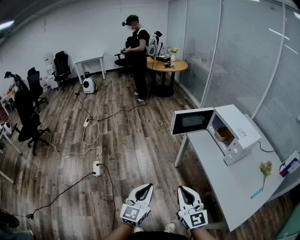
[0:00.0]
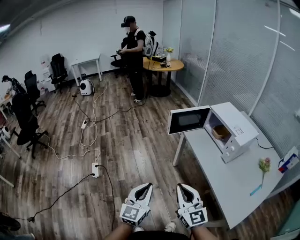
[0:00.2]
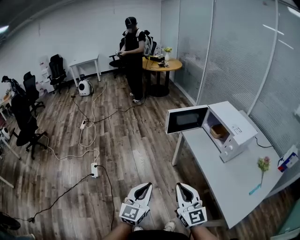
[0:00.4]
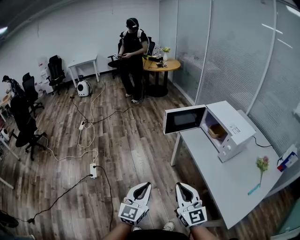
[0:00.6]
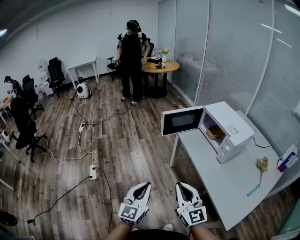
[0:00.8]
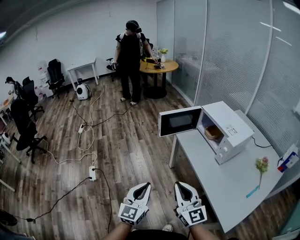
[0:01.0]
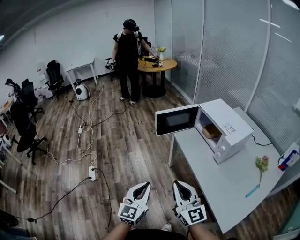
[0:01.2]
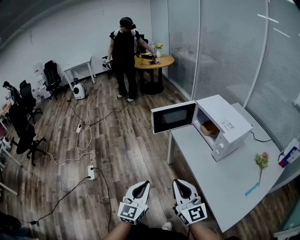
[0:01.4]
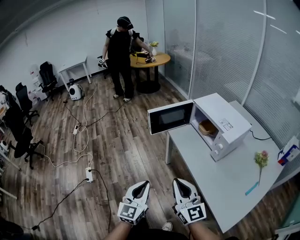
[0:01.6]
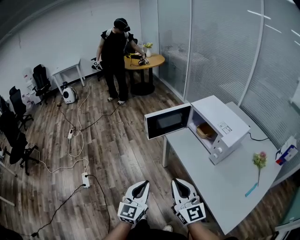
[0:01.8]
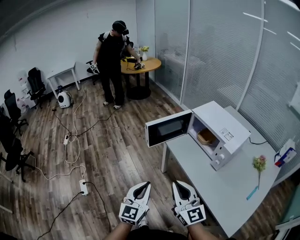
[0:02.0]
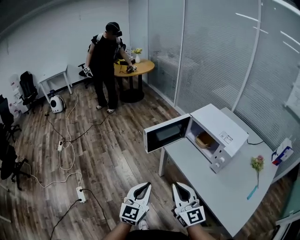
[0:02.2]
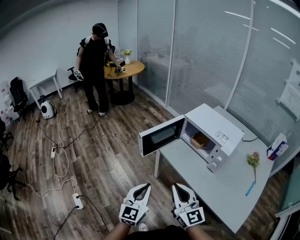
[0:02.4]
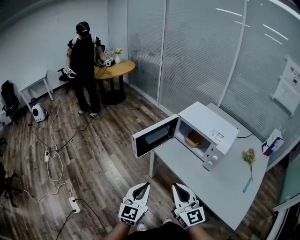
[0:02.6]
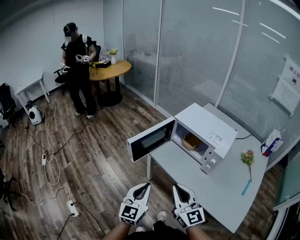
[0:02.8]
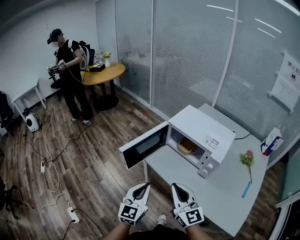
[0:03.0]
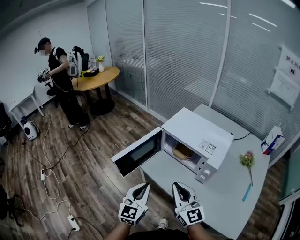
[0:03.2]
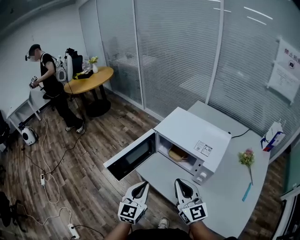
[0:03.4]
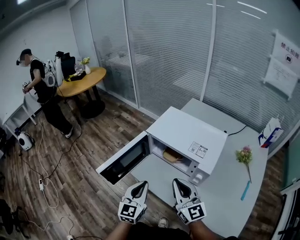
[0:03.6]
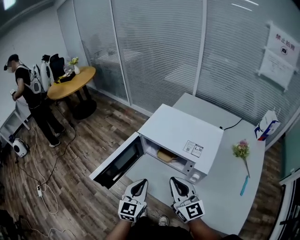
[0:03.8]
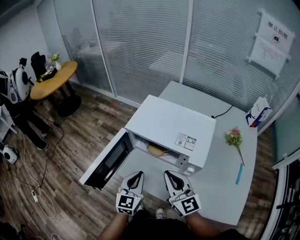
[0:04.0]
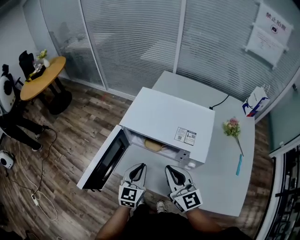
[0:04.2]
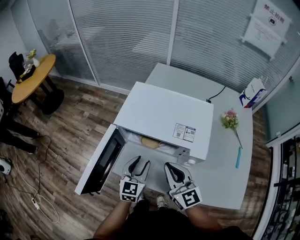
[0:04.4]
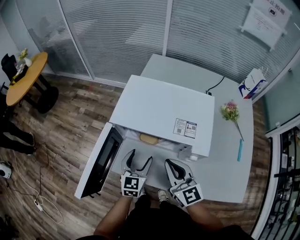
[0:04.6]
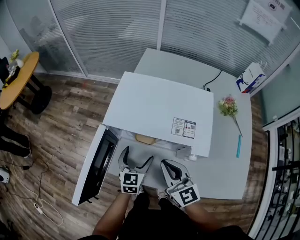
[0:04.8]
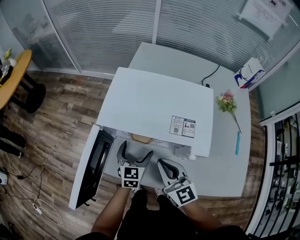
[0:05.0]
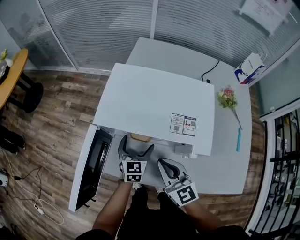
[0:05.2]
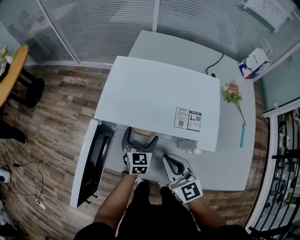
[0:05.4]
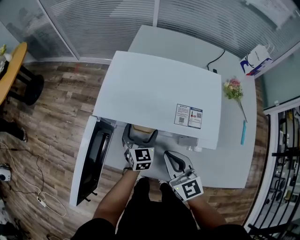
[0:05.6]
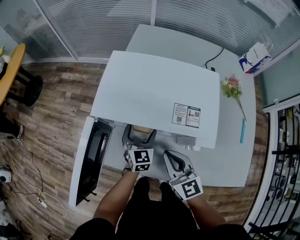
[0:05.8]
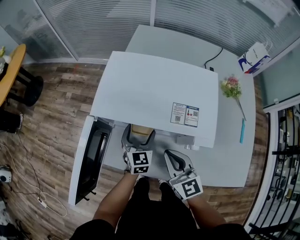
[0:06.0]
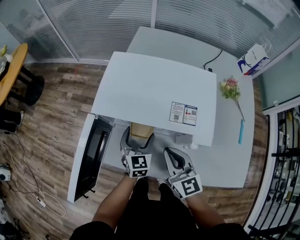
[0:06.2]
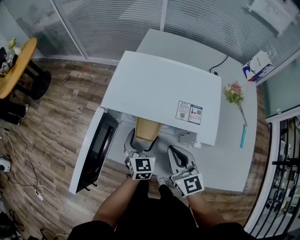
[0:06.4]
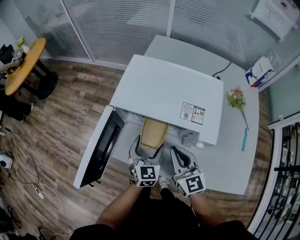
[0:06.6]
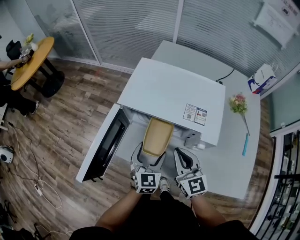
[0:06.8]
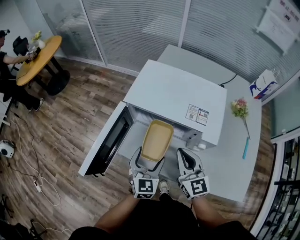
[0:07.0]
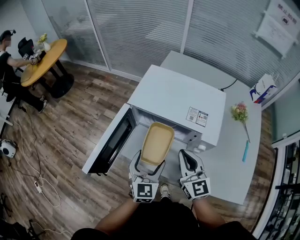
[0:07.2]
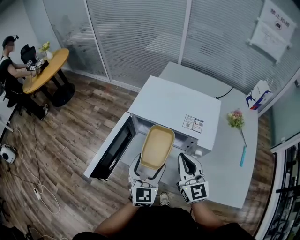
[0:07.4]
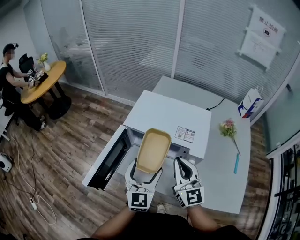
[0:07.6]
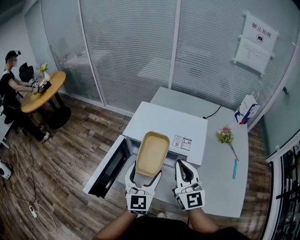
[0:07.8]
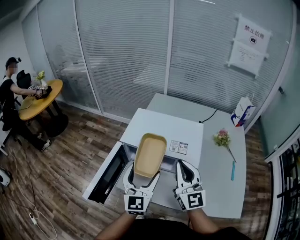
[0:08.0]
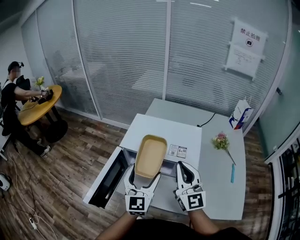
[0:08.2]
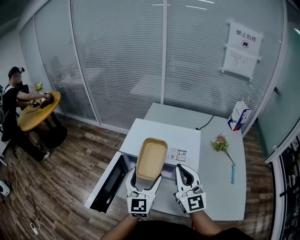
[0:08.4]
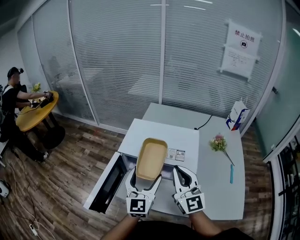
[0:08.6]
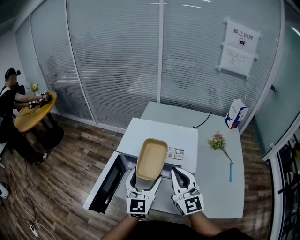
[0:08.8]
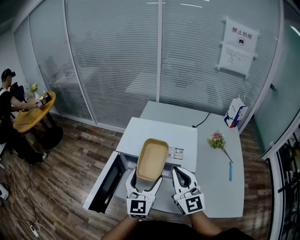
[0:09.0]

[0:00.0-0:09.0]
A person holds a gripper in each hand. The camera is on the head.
0.0 to 1.6 s: The grippers both shift to the right and forward by some 15 cm.
1.6 to 3.0 s: Both grippers travel together forward, about 20 cm. The right gripper changes its angle by approximately 20 degrees; the left gripper rotates some 20 degrees.
3.0 to 4.4 s: The two grippers go some 25 cm forward and to the right. The left gripper changes its angle by about 20 degrees. Meanwhile the right gripper rotates approximately 20 degrees.
4.4 to 6.0 s: The left gripper goes some 15 cm forward and downward, and opens. The right gripper shifts some 10 cm downward.
6.0 to 7.6 s: The right gripper shifts about 15 cm upward, and turns by some 20 degrees. Meanwhile the left gripper is displaced upward and backward by approximately 25 cm, and changes its angle by roughly 20 degrees.
7.6 to 9.0 s: The left gripper moves roughly 5 cm. Meanwhile the right gripper goes about 5 cm upward.

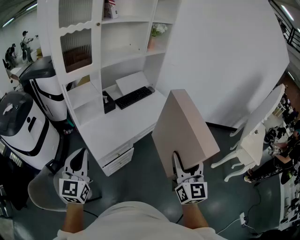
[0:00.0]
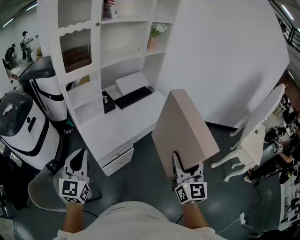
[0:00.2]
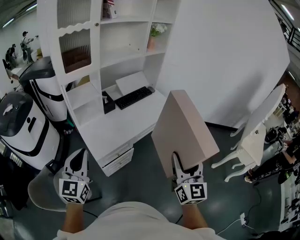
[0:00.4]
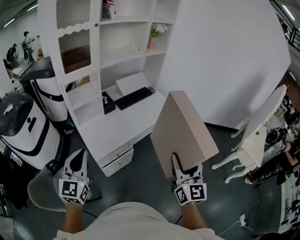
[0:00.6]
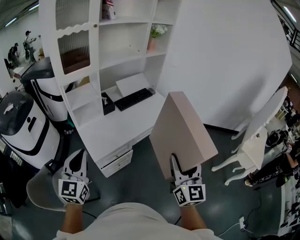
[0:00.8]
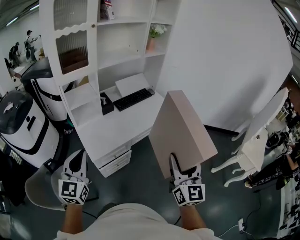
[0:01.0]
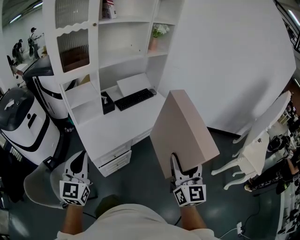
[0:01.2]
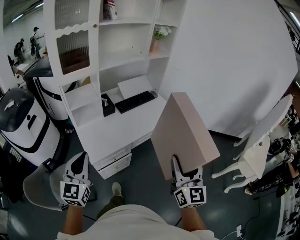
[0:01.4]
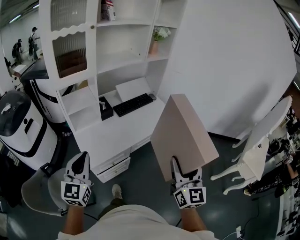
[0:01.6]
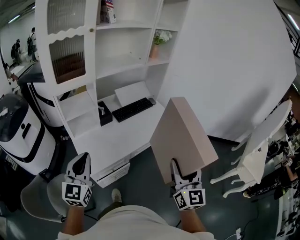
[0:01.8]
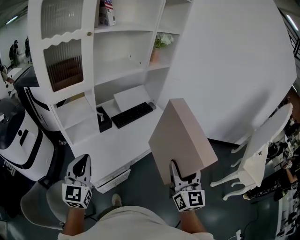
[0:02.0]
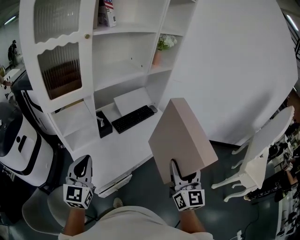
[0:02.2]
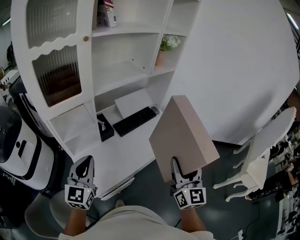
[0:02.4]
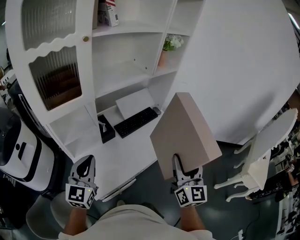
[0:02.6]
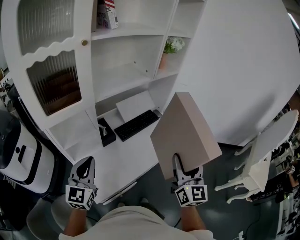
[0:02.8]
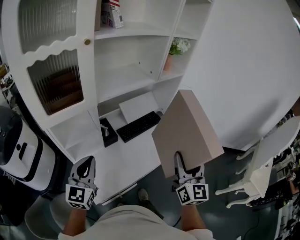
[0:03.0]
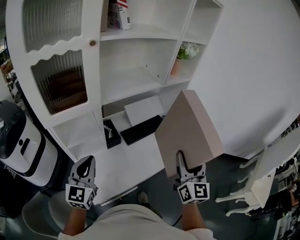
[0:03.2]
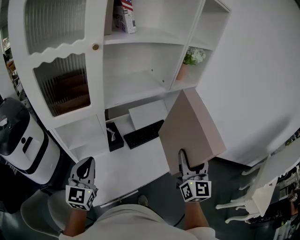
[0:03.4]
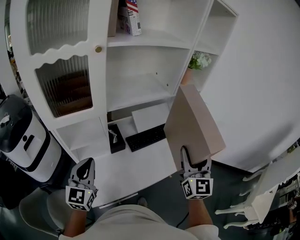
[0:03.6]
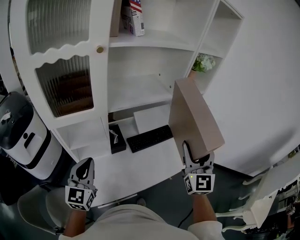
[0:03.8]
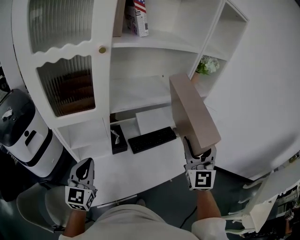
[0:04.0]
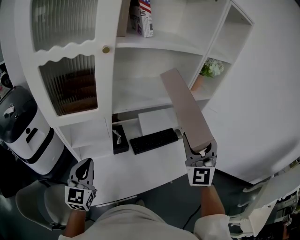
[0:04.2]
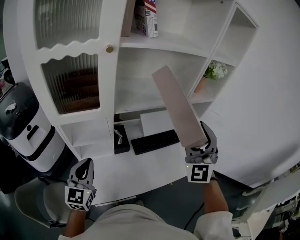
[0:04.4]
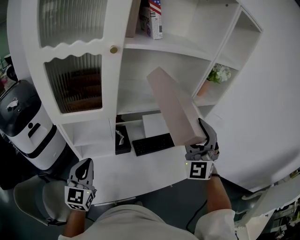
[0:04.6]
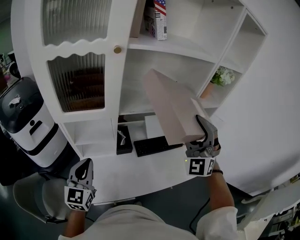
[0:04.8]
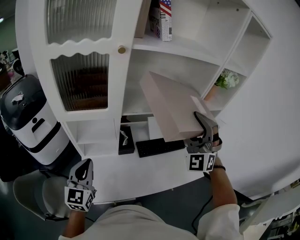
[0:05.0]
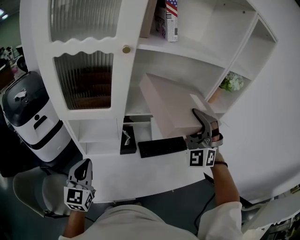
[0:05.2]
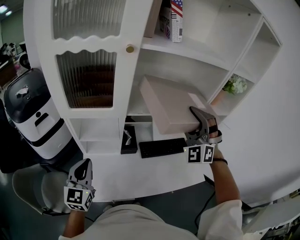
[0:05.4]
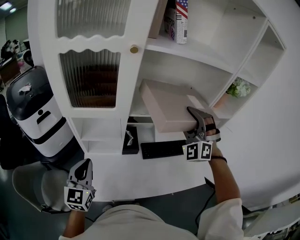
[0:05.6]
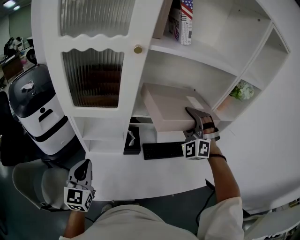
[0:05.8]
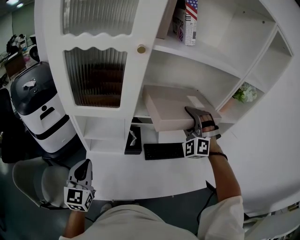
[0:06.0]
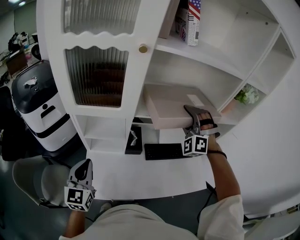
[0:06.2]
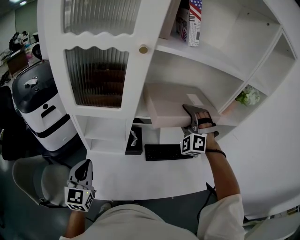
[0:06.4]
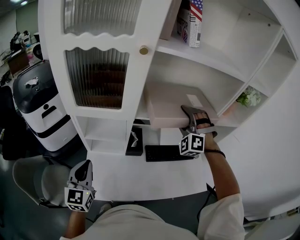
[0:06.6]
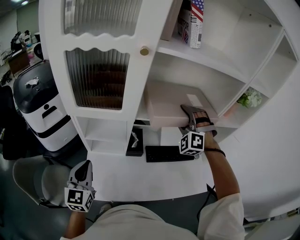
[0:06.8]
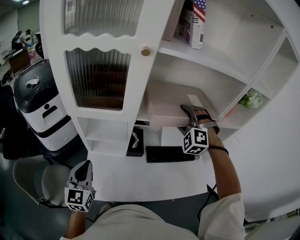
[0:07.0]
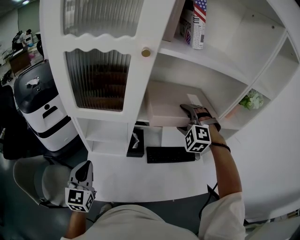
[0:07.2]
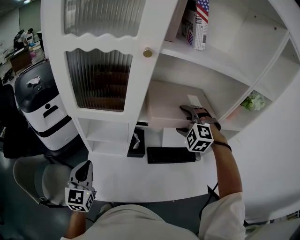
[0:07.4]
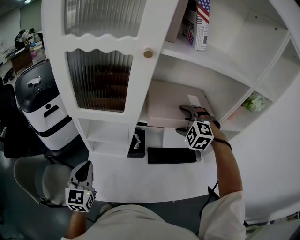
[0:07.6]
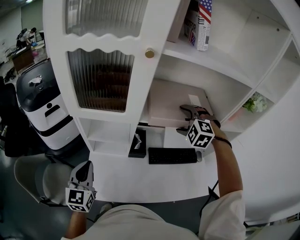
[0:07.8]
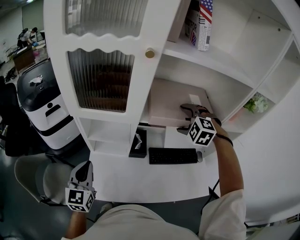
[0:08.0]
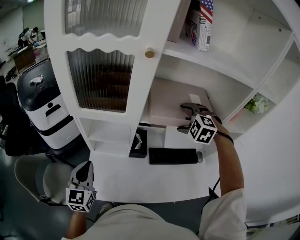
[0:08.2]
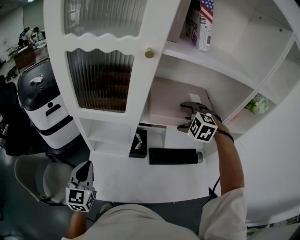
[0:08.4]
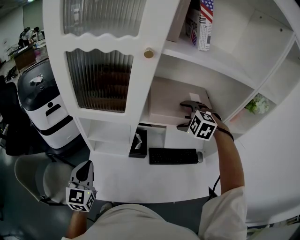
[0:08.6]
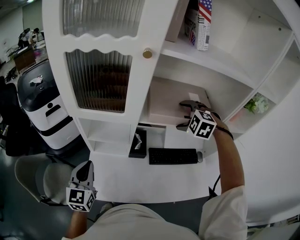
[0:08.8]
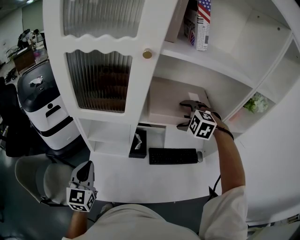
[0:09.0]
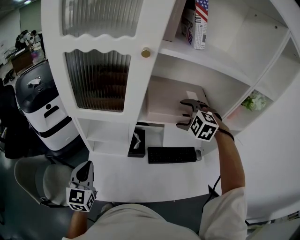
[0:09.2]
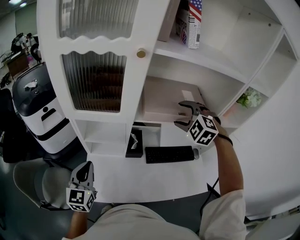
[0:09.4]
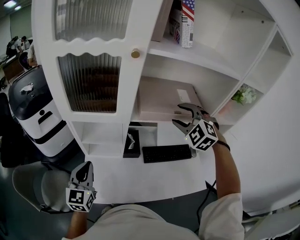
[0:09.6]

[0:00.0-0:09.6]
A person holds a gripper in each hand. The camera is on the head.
0.0 to 1.6 s: The left gripper travels forward and to the right by roughly 10 cm. Meanwhile the right gripper moves forward, approximately 10 cm.
1.6 to 3.2 s: Both grippers move forward, about 30 cm.
3.2 to 4.8 s: The right gripper goes roughly 20 cm forward, and rotates around the line of its fingers by about 60 degrees, counterclockwise from behind.
4.8 to 6.4 s: The right gripper moves forward and downward, some 20 cm, and turns by approximately 30 degrees.
6.4 to 8.0 s: The right gripper tips its fingers downward by approximately 30 degrees.
8.0 to 9.6 s: The right gripper heads upward, covering roughly 5 cm, and closes up.

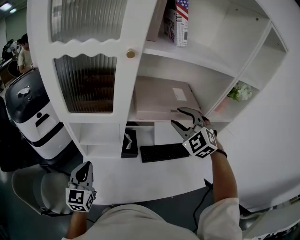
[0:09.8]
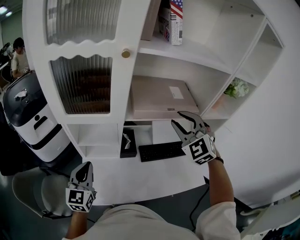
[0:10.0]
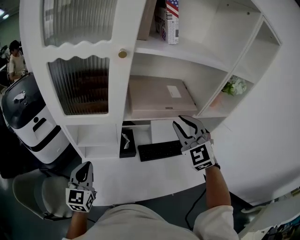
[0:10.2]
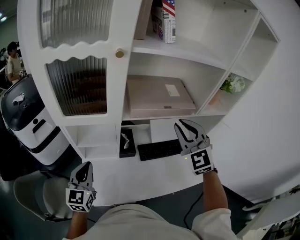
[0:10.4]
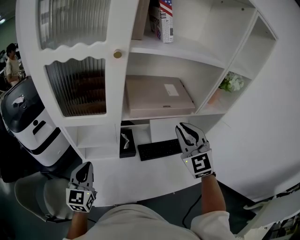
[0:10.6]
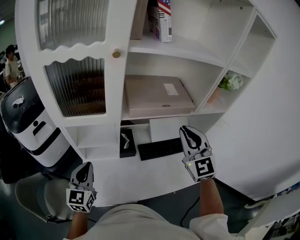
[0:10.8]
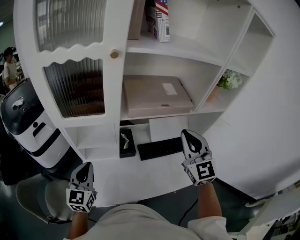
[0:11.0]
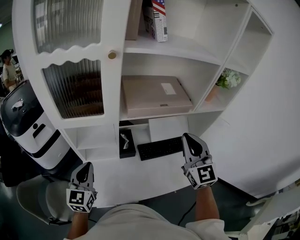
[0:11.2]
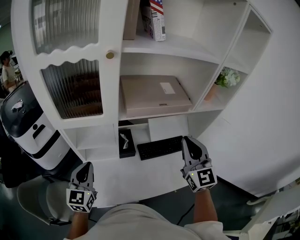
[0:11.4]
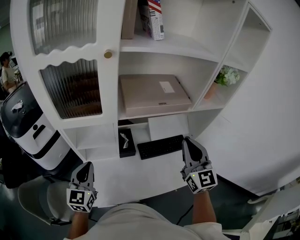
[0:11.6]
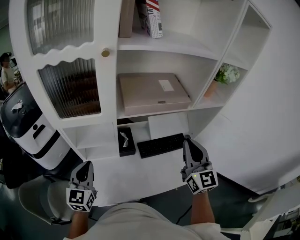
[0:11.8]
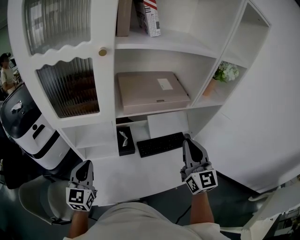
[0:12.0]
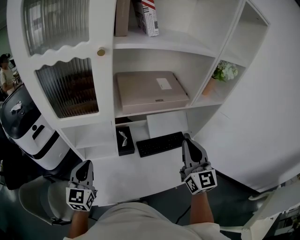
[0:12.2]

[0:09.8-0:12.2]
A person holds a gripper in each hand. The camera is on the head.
9.8 to 11.0 s: The right gripper travels backward by about 10 cm, turns by roughly 40 degrees, and closes.
11.0 to 12.2 s: The right gripper changes place by roughly 5 cm.

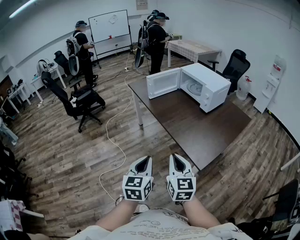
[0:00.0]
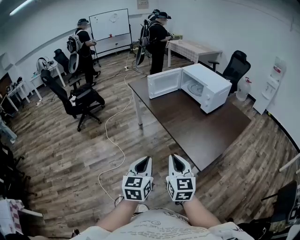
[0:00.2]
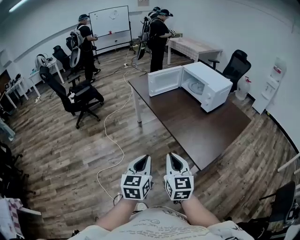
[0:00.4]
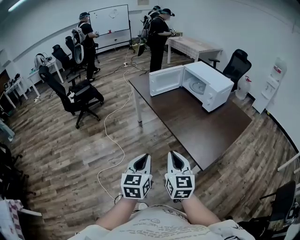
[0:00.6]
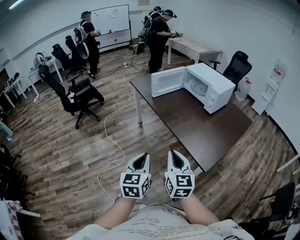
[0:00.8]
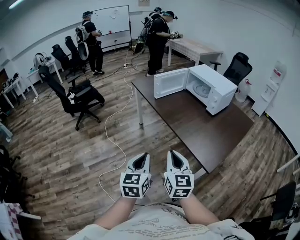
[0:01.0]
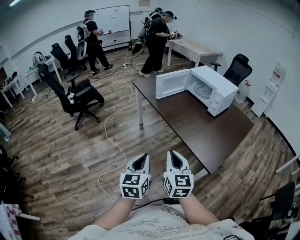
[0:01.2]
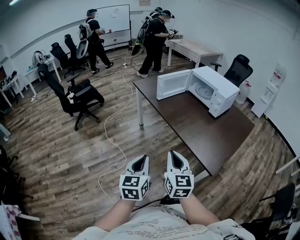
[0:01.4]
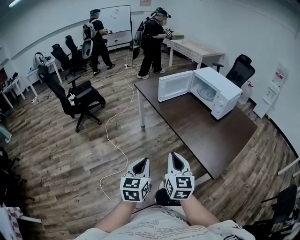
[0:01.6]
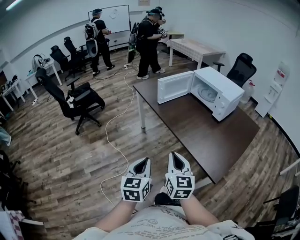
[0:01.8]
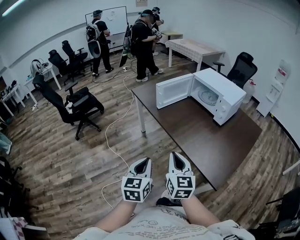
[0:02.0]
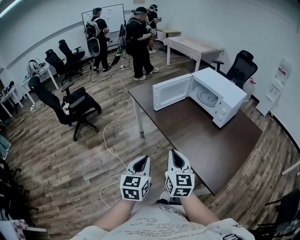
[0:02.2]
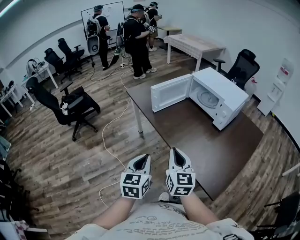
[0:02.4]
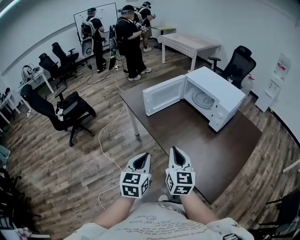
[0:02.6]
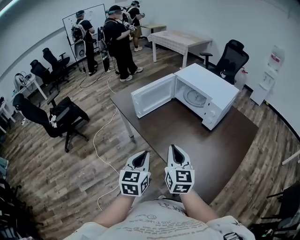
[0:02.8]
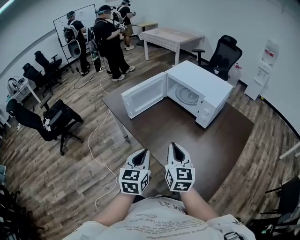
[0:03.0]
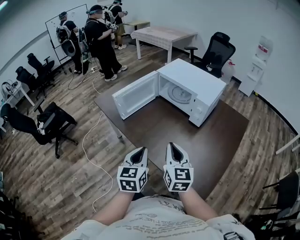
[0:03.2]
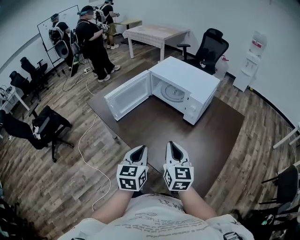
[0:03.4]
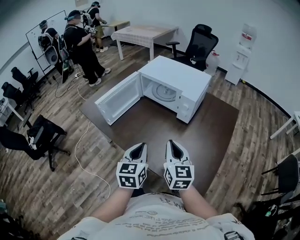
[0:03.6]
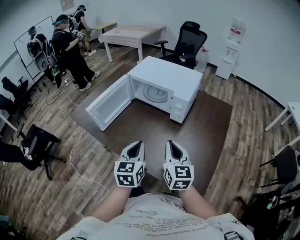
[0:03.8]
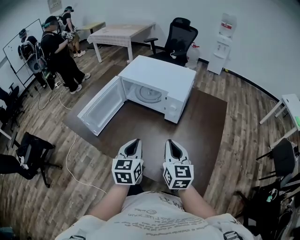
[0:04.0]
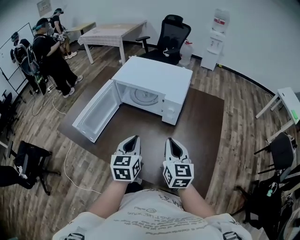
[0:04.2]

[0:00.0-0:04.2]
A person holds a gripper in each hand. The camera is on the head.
0.0 to 1.4 s: The right gripper goes some 15 cm to the left and forward. Meanwhile the left gripper travels to the left by roughly 15 cm.
1.4 to 2.8 s: The grippers both shift forward by roughly 30 cm.
2.8 to 4.2 s: The left gripper shifts by approximately 25 cm, and rotates approximately 20 degrees. The right gripper ends up about 20 cm from where it was, and changes its angle by about 30 degrees.
